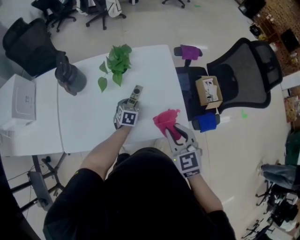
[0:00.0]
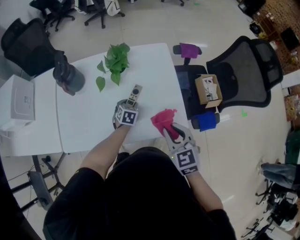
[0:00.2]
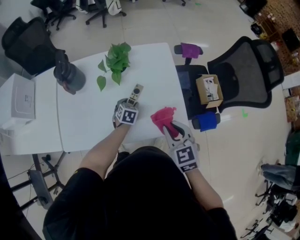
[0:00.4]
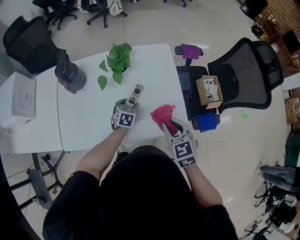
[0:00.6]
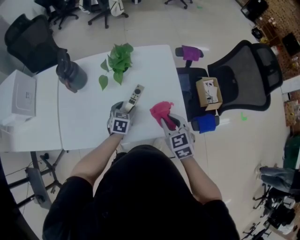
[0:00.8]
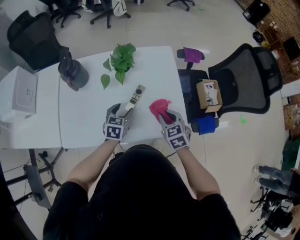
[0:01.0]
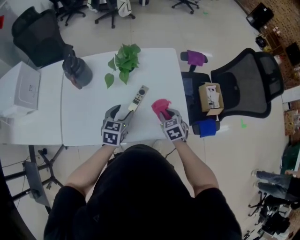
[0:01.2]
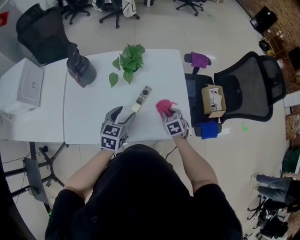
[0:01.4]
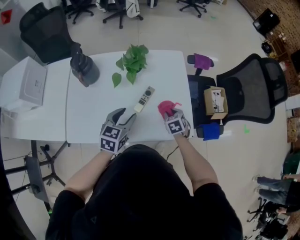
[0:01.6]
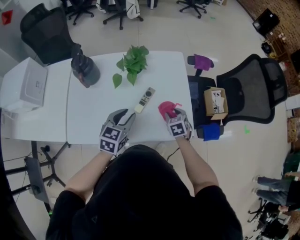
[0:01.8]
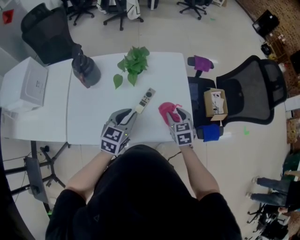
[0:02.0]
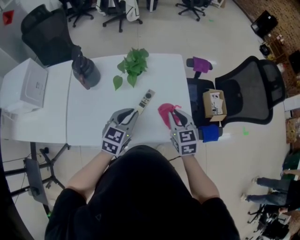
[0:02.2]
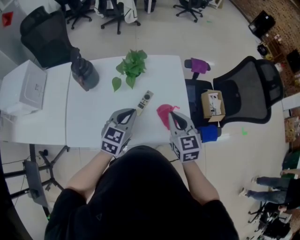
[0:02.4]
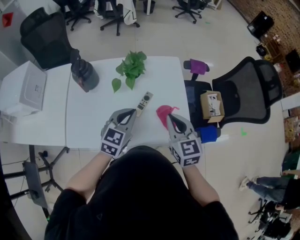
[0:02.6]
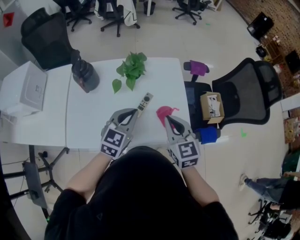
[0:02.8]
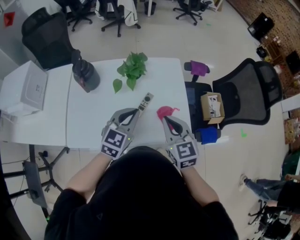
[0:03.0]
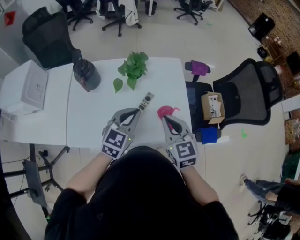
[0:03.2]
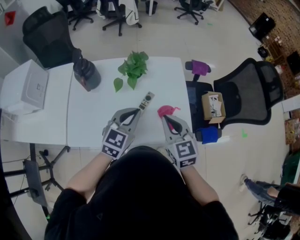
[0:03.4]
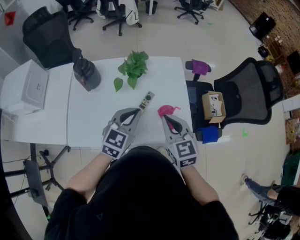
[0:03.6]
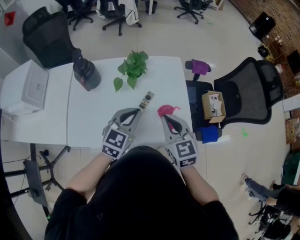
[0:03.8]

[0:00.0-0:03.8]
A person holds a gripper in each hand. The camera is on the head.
0:00.0 to 0:01.2: The right gripper travels downward and forward by approximately 20 cm. The left gripper heads upward and backward, covering roughly 15 cm.
0:01.2 to 0:02.6: The right gripper moves upward, roughly 20 cm, rotates some 30 degrees, and opens, then closes once more; the left gripper is displaced upward by about 10 cm, and closes.
0:02.6 to 0:03.8: The grippers make only small movements.

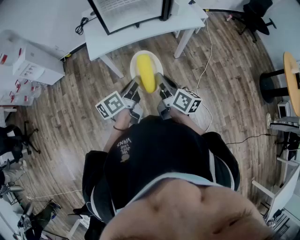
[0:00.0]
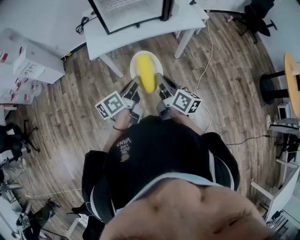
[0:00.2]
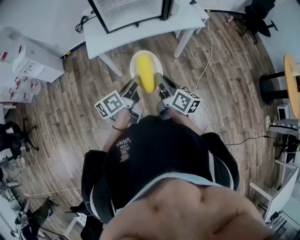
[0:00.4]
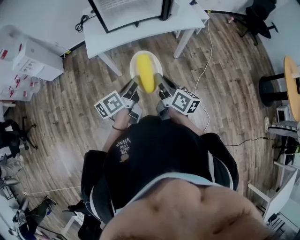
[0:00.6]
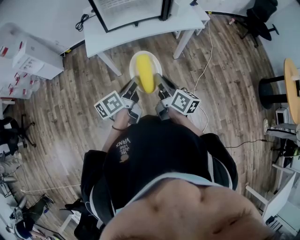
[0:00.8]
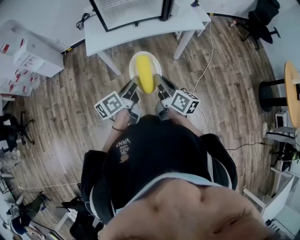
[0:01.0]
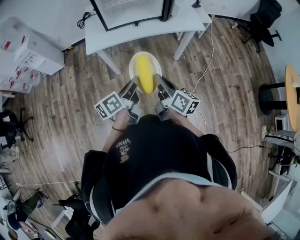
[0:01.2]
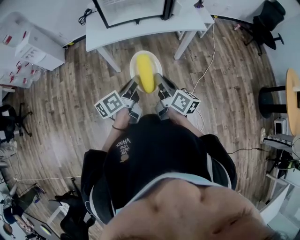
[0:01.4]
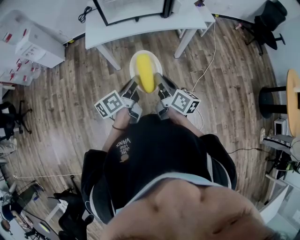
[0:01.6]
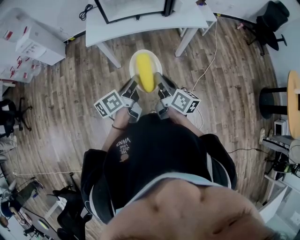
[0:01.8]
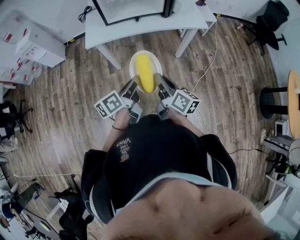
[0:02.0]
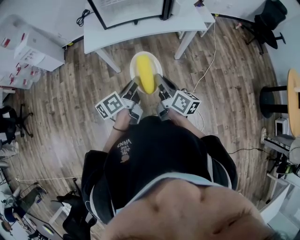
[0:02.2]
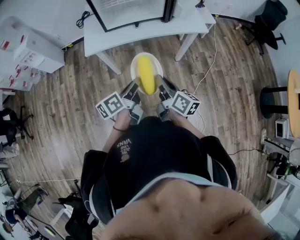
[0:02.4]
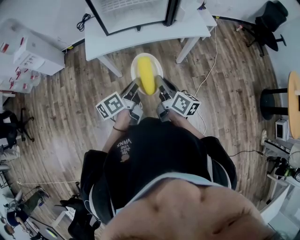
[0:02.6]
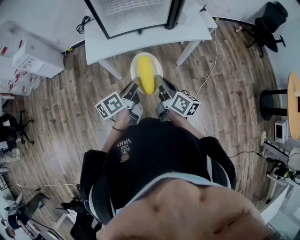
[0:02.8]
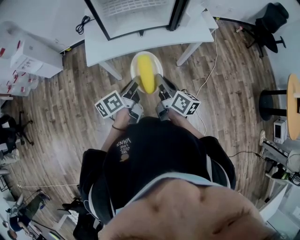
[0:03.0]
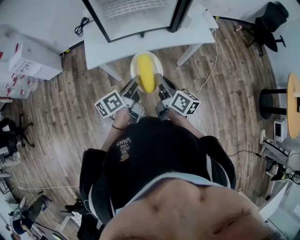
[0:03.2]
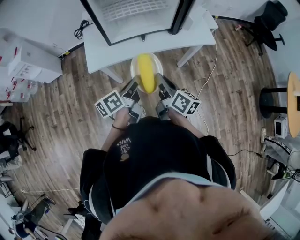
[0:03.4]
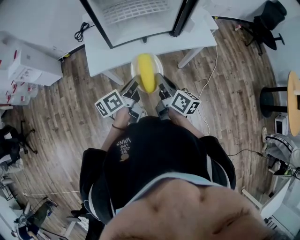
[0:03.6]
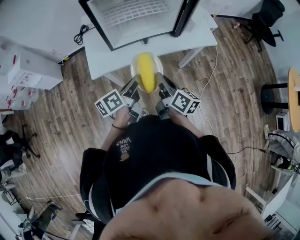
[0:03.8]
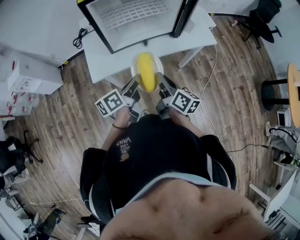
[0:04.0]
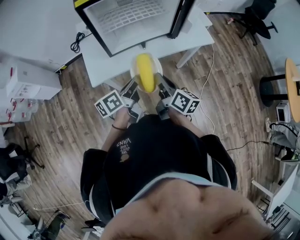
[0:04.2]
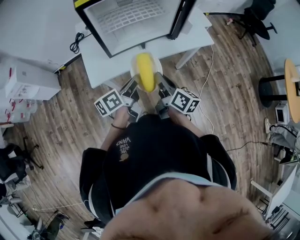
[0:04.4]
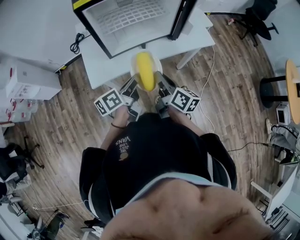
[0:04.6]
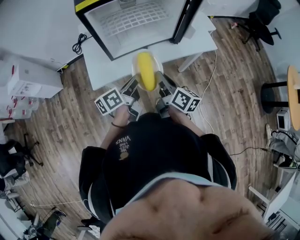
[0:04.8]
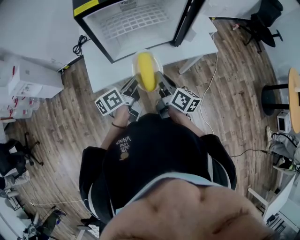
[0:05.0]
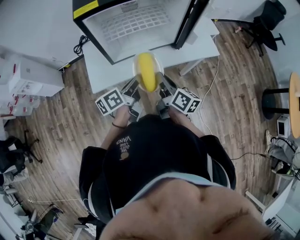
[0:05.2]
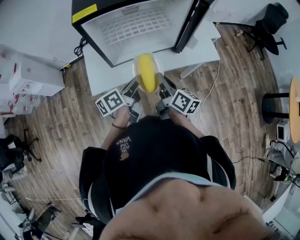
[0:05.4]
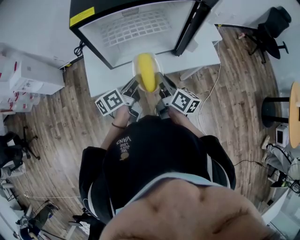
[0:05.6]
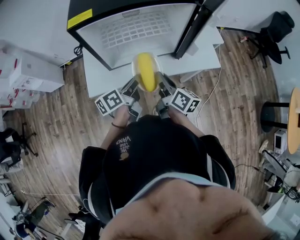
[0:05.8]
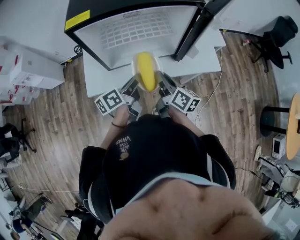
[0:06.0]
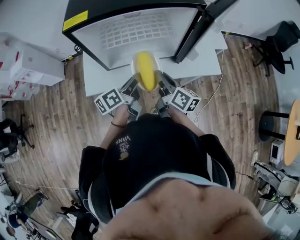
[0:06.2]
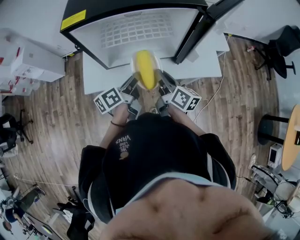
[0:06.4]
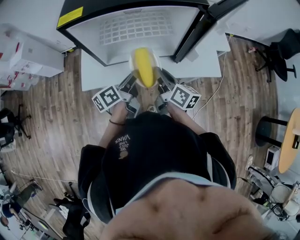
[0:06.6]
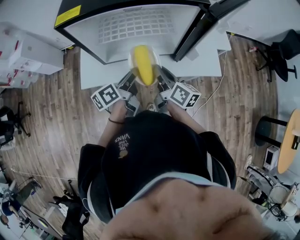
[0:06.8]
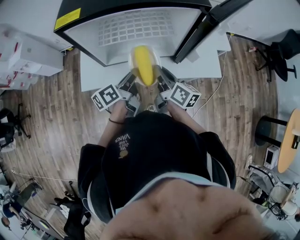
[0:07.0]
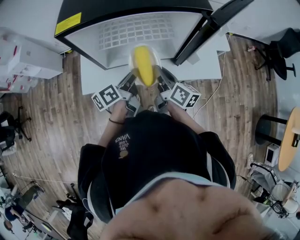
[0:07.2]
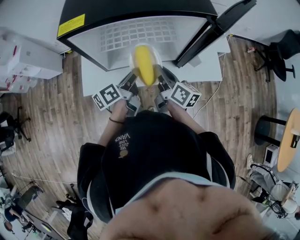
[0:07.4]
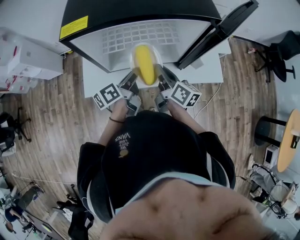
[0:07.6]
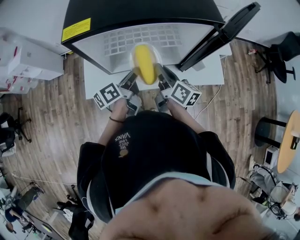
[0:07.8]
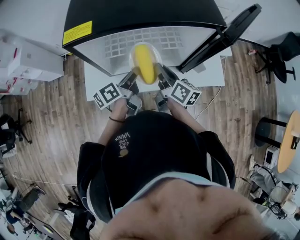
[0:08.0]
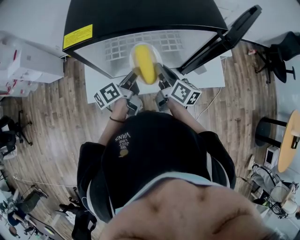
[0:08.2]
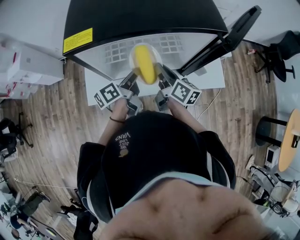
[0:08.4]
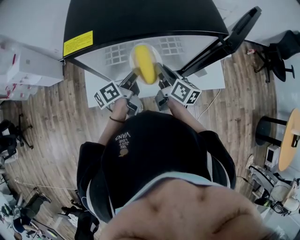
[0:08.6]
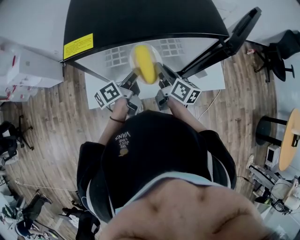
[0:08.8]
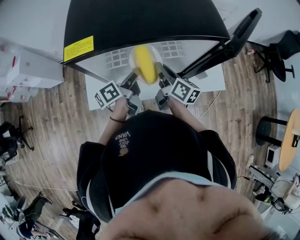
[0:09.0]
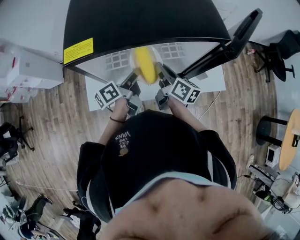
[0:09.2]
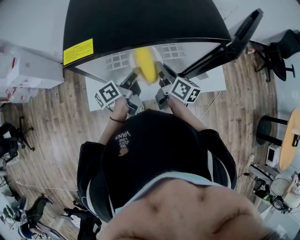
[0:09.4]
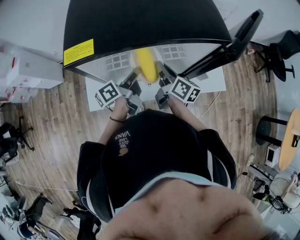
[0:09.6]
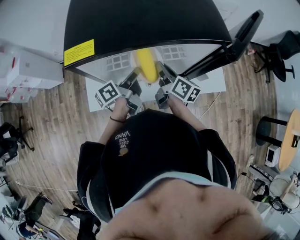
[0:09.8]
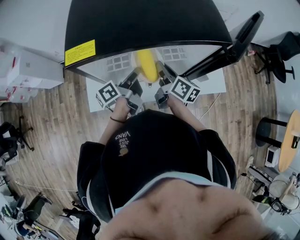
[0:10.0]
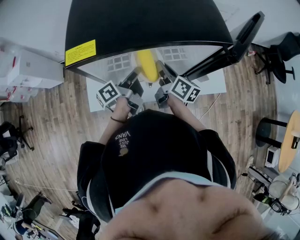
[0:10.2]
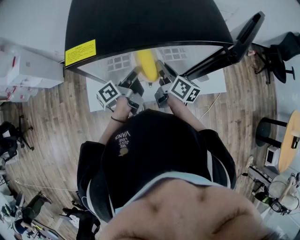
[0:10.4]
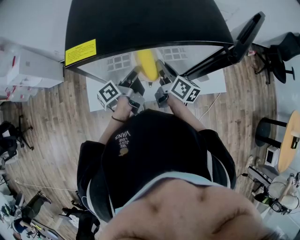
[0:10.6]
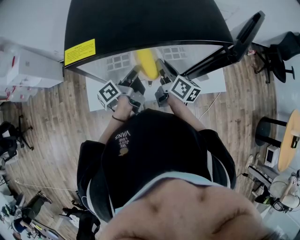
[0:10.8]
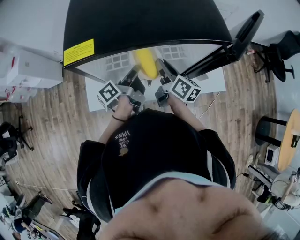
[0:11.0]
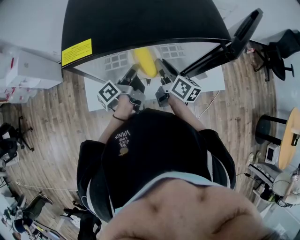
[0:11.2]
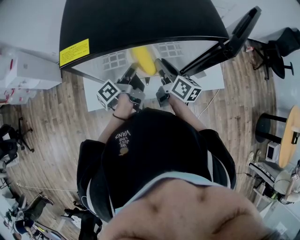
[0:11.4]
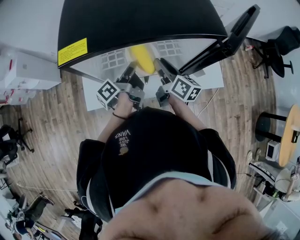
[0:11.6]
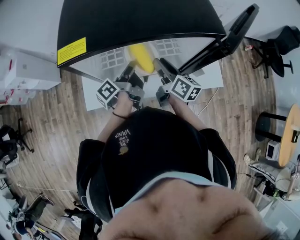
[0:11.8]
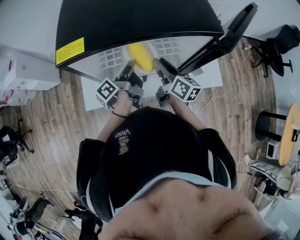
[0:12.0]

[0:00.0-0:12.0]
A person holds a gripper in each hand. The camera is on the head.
0:00.0 to 0:01.6: The grippers both shift to the right by some 5 cm.
0:01.6 to 0:03.0: The two grippers go some 15 cm forward.
0:03.0 to 0:04.4: The grippers both shift forward and to the left by roughly 10 cm.
0:04.4 to 0:06.0: The grippers both shift forward by about 15 cm.
0:06.0 to 0:07.6: Both grippers move forward, approximately 5 cm.
0:07.6 to 0:09.0: The grippers both shift forward by some 5 cm.
0:09.0 to 0:10.4: The grippers stay close to where they were, moving slightly.
0:10.4 to 0:12.0: The right gripper opens up.

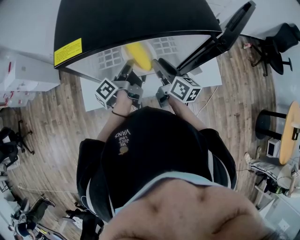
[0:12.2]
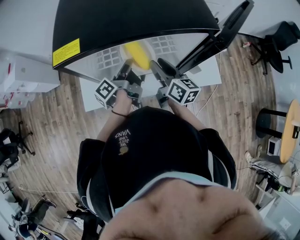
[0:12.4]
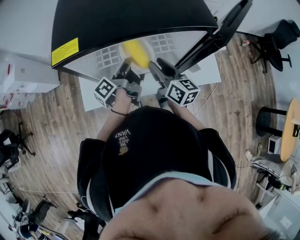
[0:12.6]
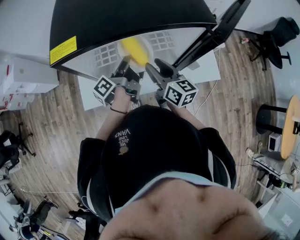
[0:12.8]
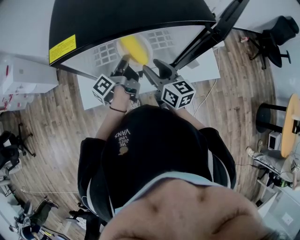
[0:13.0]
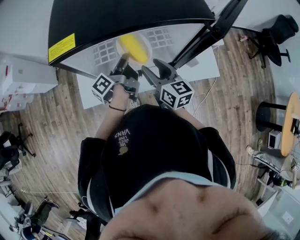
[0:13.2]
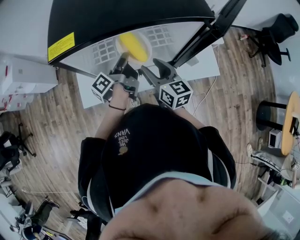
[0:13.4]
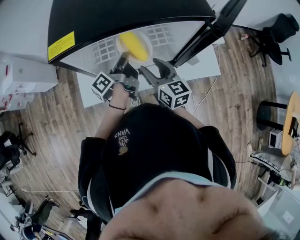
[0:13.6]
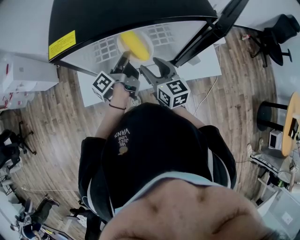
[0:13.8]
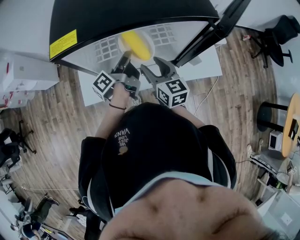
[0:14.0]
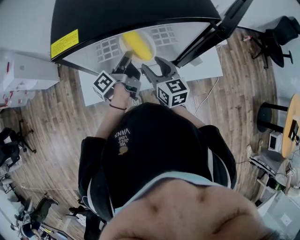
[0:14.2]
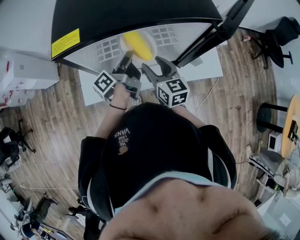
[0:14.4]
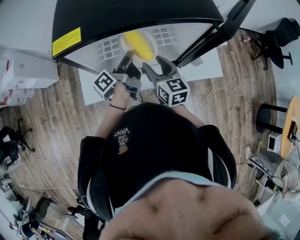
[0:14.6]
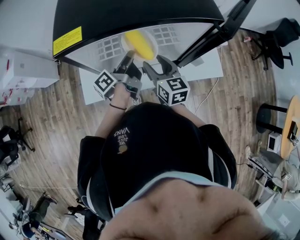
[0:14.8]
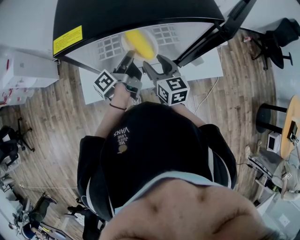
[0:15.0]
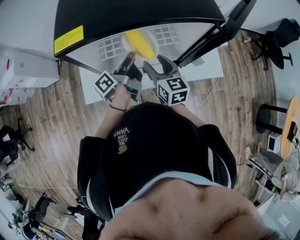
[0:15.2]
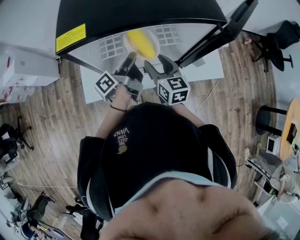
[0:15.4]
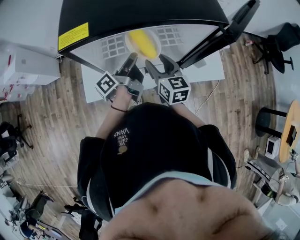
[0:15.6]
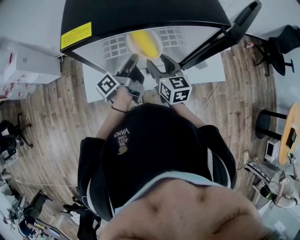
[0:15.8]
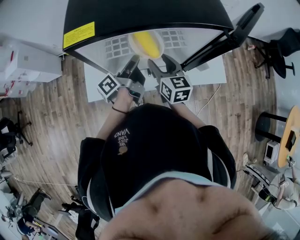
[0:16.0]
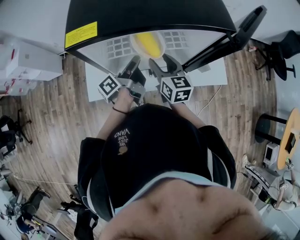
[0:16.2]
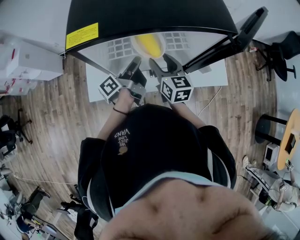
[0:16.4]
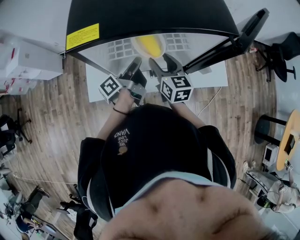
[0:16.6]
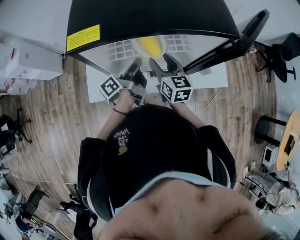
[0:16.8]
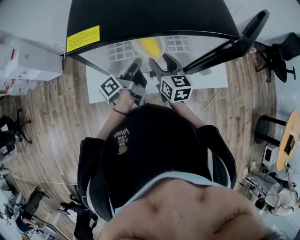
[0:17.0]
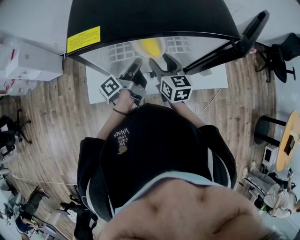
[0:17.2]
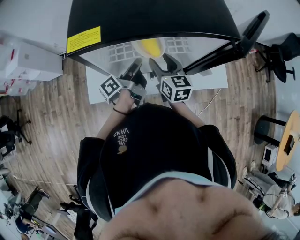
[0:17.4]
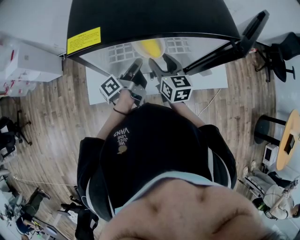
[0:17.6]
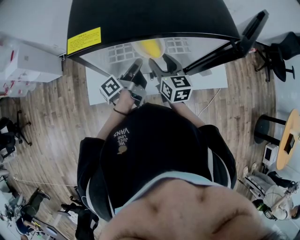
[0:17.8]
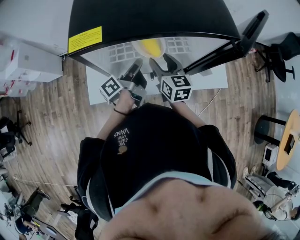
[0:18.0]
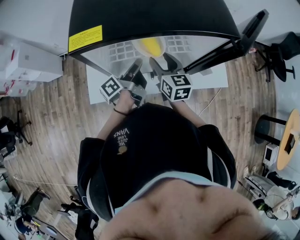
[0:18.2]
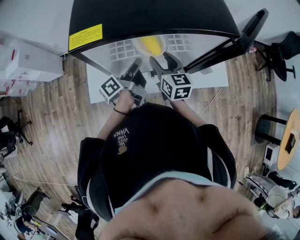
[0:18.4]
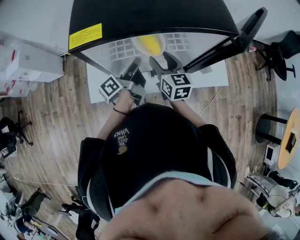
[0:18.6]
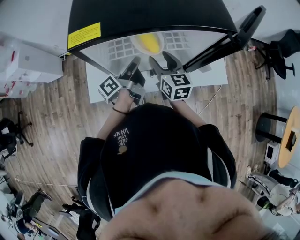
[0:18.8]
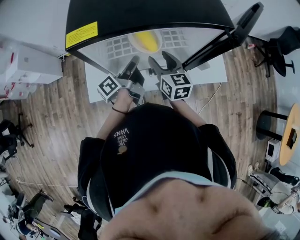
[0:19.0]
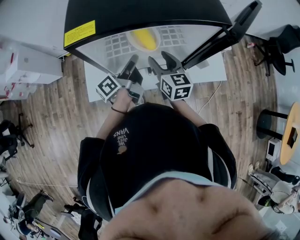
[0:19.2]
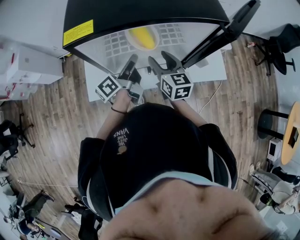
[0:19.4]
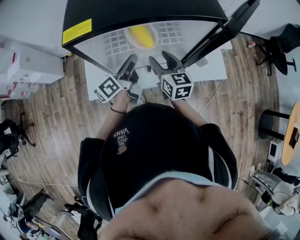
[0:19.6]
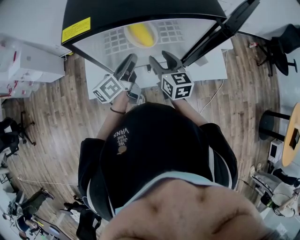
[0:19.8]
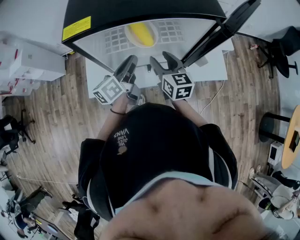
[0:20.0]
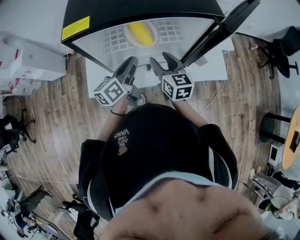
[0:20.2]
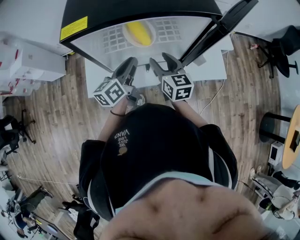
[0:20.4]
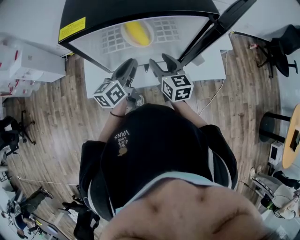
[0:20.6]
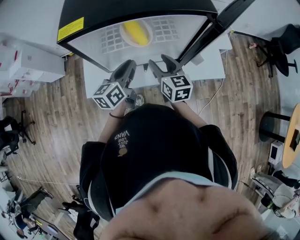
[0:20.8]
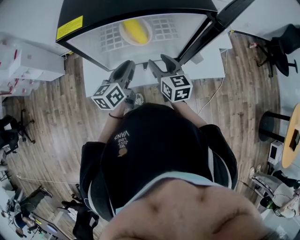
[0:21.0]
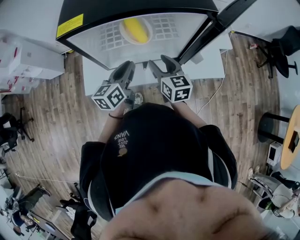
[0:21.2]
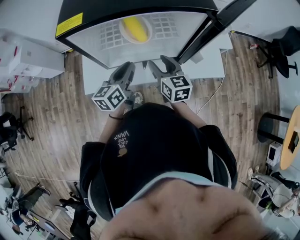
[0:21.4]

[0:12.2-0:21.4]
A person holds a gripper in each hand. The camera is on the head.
0:12.2 to 0:13.8: The right gripper shifts by about 5 cm, and turns by roughly 30 degrees.
0:13.8 to 0:16.8: The grippers stay close to where they were, moving slightly.
0:16.8 to 0:18.4: Neither gripper changes place.
0:18.4 to 0:19.8: The left gripper rotates about 30 degrees.
0:19.8 to 0:21.4: The left gripper ends up some 5 cm from where it was, and changes its angle by some 20 degrees.
